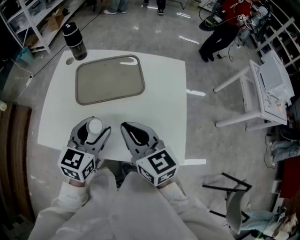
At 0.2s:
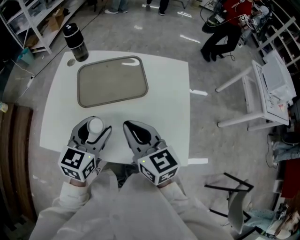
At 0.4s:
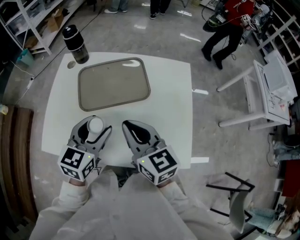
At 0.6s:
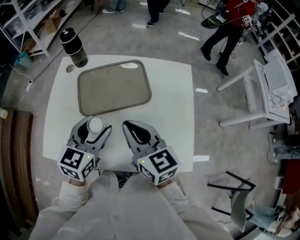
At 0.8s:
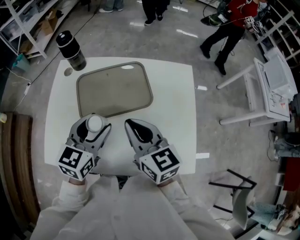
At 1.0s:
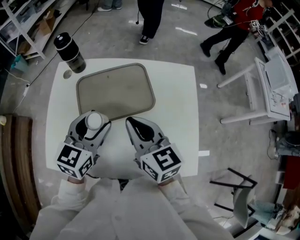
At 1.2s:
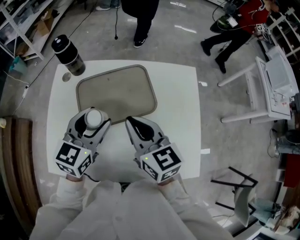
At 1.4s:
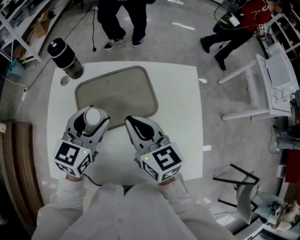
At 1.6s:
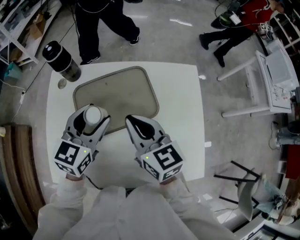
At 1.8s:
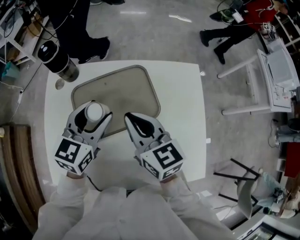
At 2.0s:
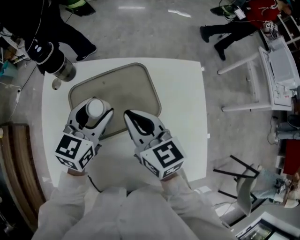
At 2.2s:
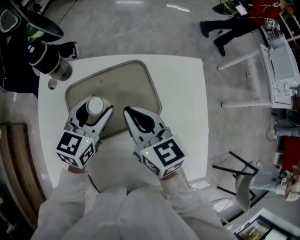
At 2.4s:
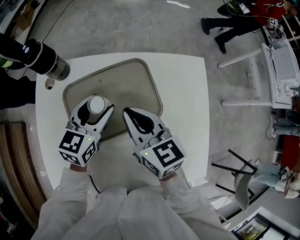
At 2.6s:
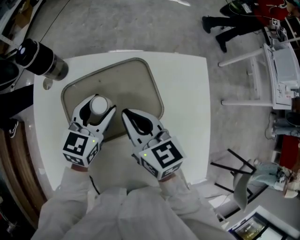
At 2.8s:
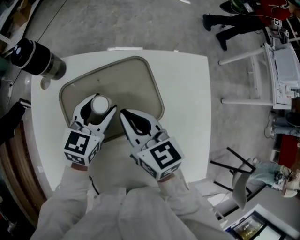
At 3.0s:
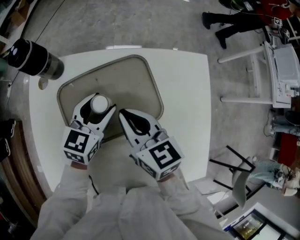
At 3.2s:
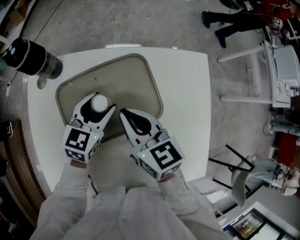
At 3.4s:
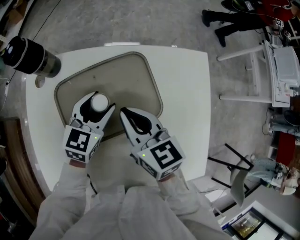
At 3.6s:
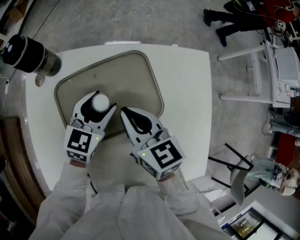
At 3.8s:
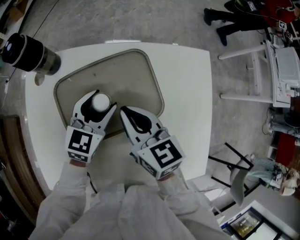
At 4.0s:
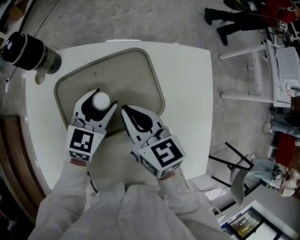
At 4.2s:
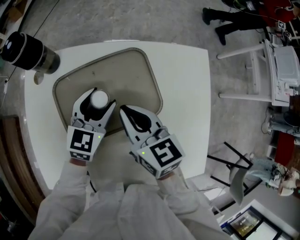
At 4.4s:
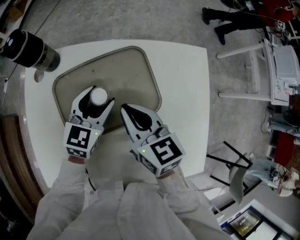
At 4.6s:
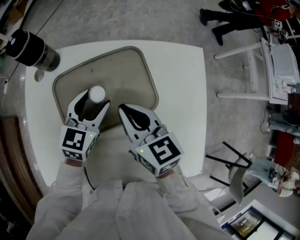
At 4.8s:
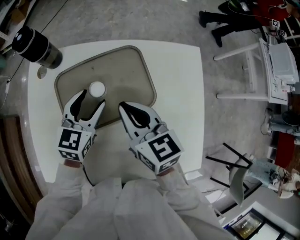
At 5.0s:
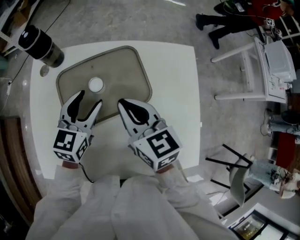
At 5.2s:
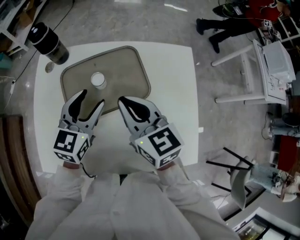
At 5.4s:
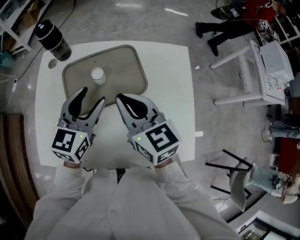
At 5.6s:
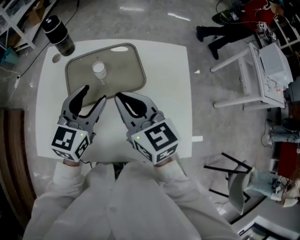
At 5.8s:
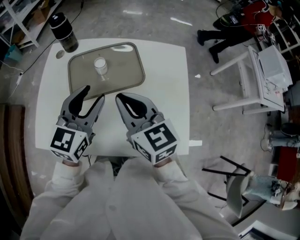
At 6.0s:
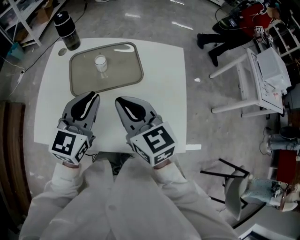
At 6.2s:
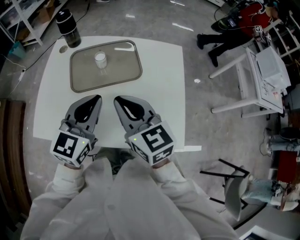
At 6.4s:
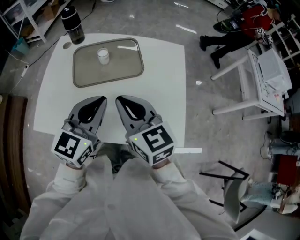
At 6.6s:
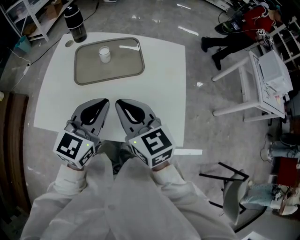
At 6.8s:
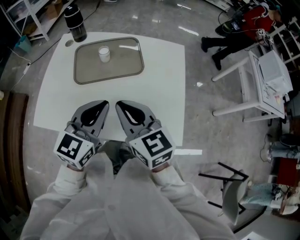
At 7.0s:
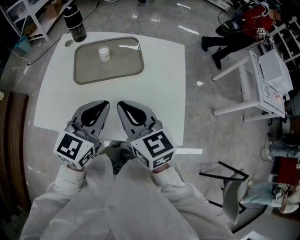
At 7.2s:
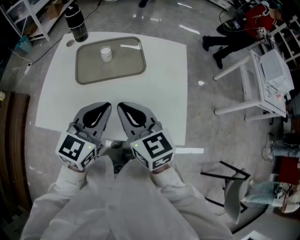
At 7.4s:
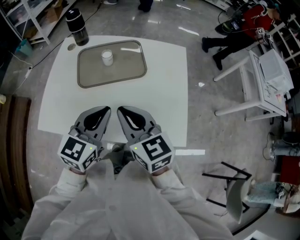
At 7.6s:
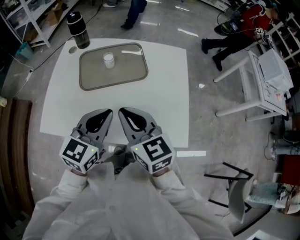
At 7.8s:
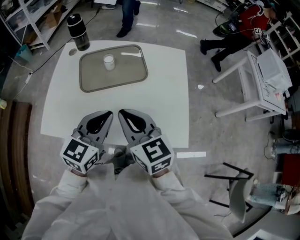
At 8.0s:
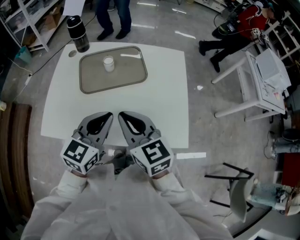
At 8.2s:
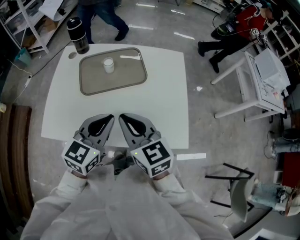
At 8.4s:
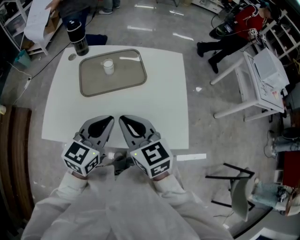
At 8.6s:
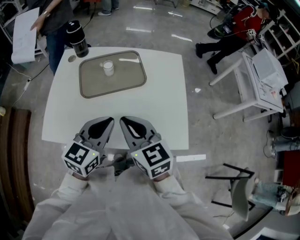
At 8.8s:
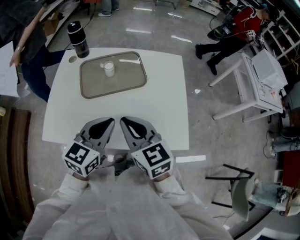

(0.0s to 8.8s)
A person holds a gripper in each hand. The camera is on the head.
0.0s - 1.4s: Both grippers move forward, approximately 20 cm.
1.4s - 3.0s: The right gripper shifts roughly 15 cm forward and downward. Meanwhile the left gripper shifts some 20 cm downward and forward.
3.0s - 4.4s: The grippers move only a little.
4.4s - 5.8s: Both grippers move backward and upward, about 25 cm.
5.8s - 7.4s: The grippers both shift backward by some 15 cm. The left gripper closes up.
7.4s - 8.8s: The grippers stay close to where they were, moving slightly.

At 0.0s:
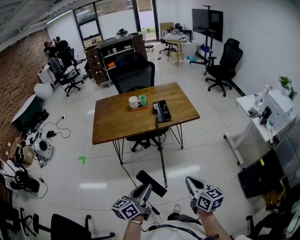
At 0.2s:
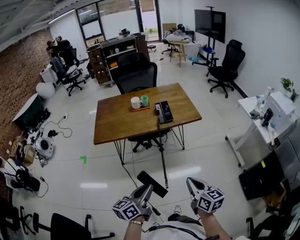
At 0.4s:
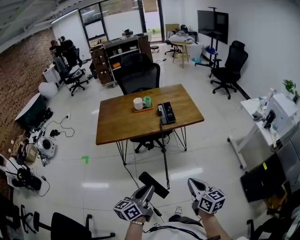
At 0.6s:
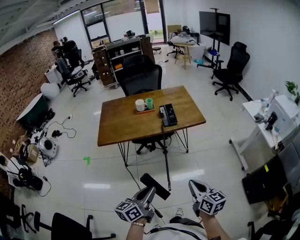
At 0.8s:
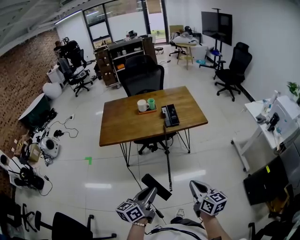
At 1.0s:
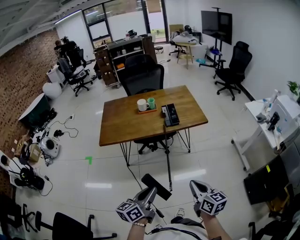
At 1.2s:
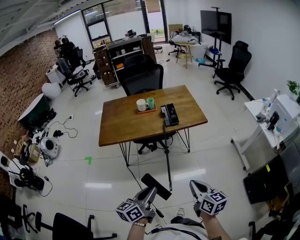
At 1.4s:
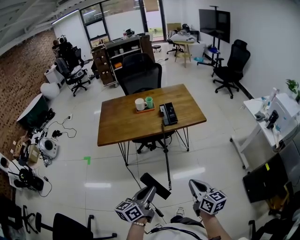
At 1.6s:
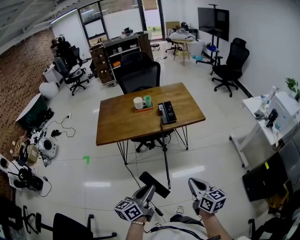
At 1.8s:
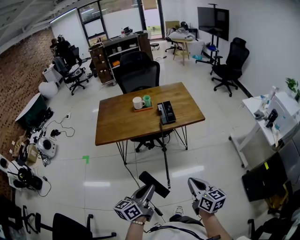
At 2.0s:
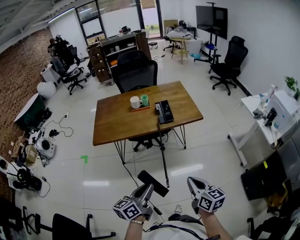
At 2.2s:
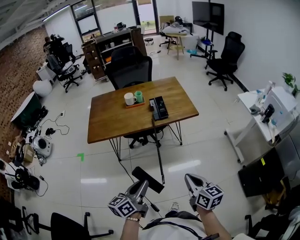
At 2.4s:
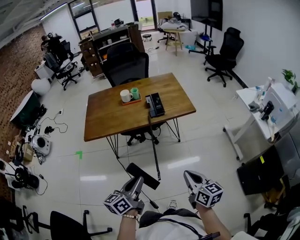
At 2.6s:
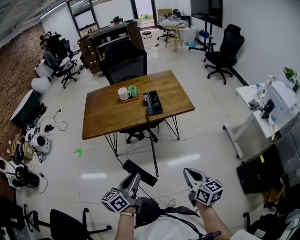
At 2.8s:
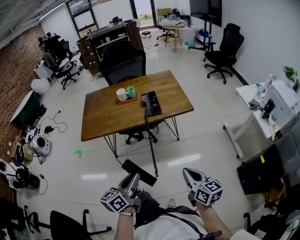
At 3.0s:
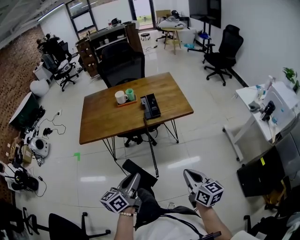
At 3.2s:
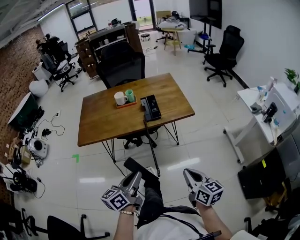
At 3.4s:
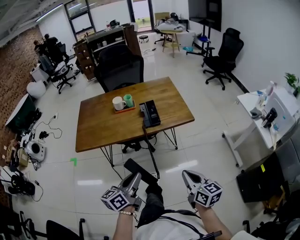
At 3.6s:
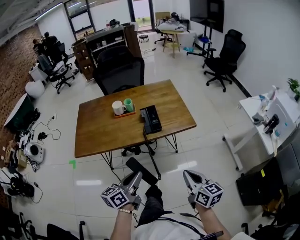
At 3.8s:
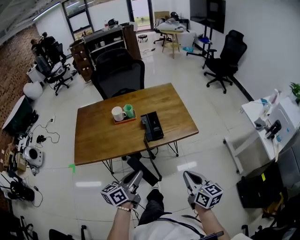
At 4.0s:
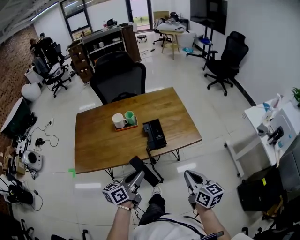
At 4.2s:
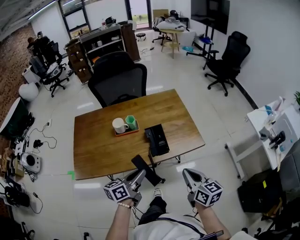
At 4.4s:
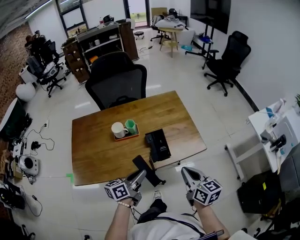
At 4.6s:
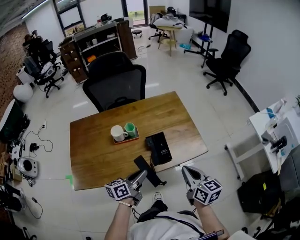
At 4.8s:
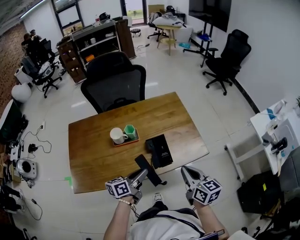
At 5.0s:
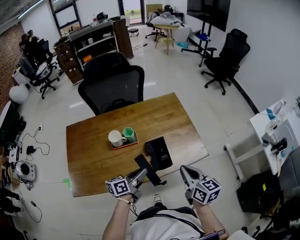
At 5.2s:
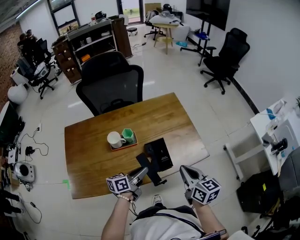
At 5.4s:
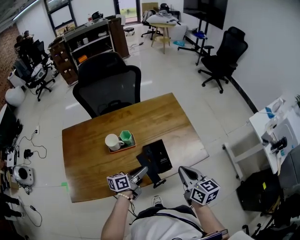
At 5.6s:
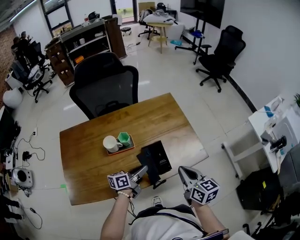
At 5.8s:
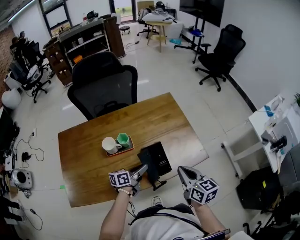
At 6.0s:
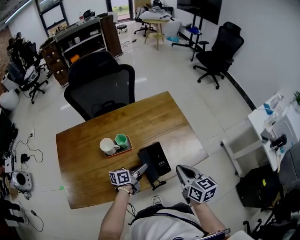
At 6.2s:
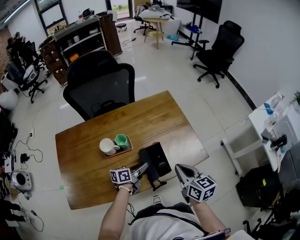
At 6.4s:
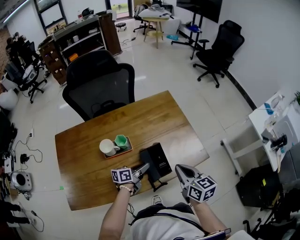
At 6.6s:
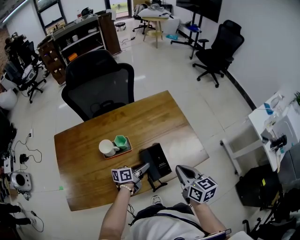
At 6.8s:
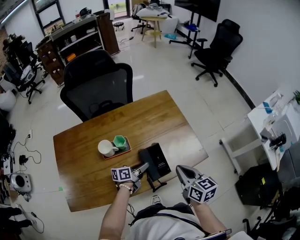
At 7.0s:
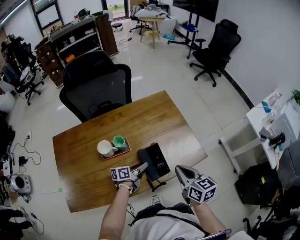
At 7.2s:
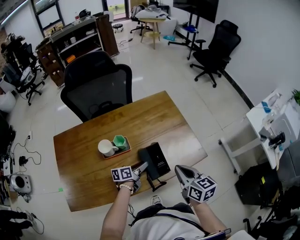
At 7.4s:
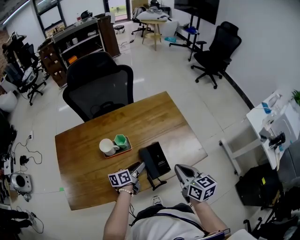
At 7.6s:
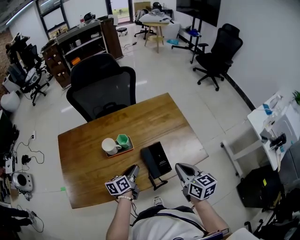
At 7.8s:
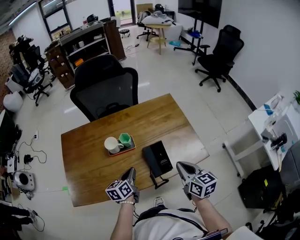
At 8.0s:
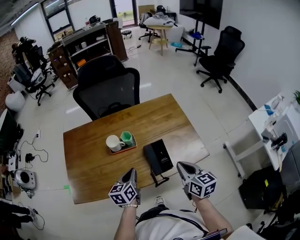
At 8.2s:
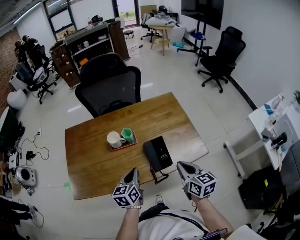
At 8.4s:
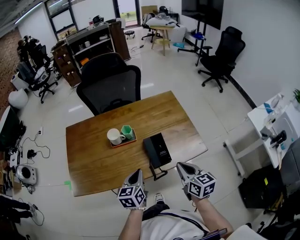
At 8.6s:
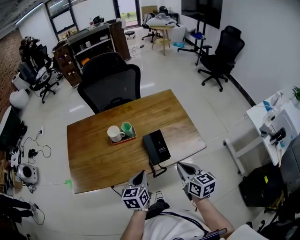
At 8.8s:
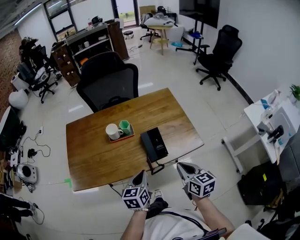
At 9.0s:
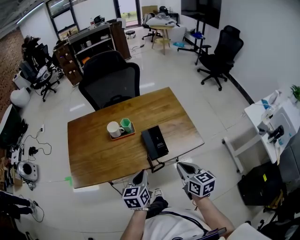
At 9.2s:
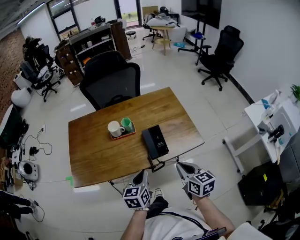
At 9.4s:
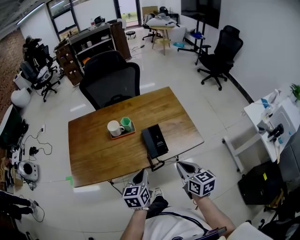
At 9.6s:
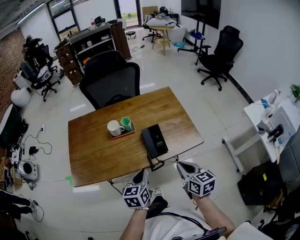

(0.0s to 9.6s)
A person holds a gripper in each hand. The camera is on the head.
0.0s - 1.6s: The grippers stay close to where they were, moving slightly.
1.6s - 3.2s: The right gripper moves forward and to the right, approximately 10 cm, while the left gripper goes some 10 cm forward.
3.2s - 4.8s: Both grippers travel together forward, about 35 cm. The left gripper turns by some 20 degrees.
4.8s - 6.4s: The left gripper goes about 15 cm forward and downward. The right gripper heads forward, covering some 10 cm.
6.4s - 8.0s: The left gripper shifts some 15 cm upward, to the left and backward, changes its angle by about 40 degrees, and opens and closes again.
8.0s - 9.6s: The left gripper travels backward and to the right by approximately 15 cm. Meanwhile the right gripper moves backward, some 10 cm.

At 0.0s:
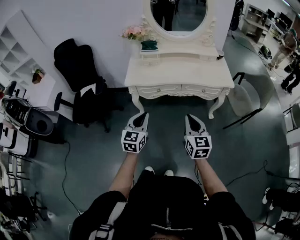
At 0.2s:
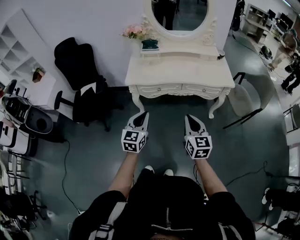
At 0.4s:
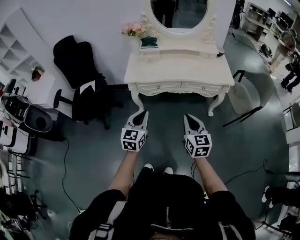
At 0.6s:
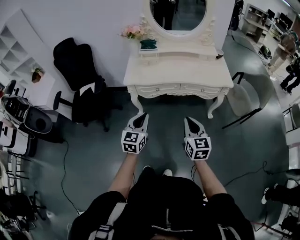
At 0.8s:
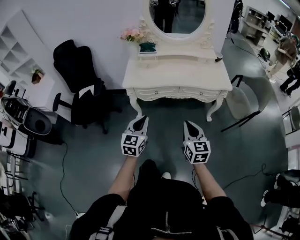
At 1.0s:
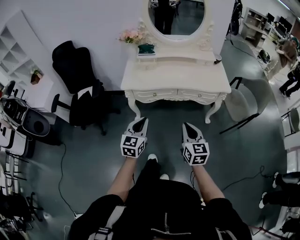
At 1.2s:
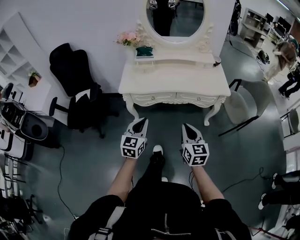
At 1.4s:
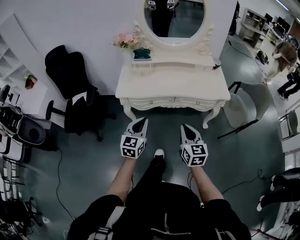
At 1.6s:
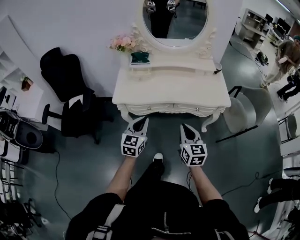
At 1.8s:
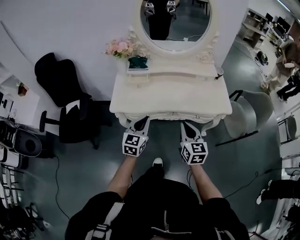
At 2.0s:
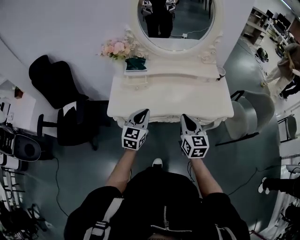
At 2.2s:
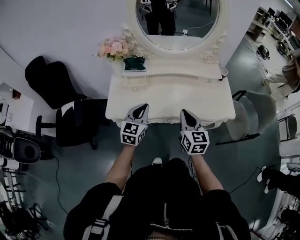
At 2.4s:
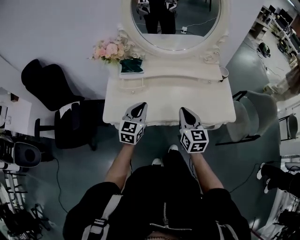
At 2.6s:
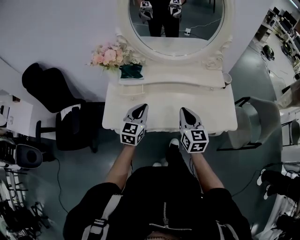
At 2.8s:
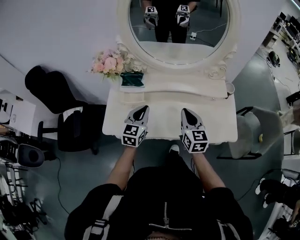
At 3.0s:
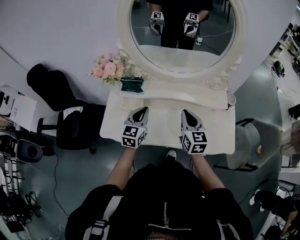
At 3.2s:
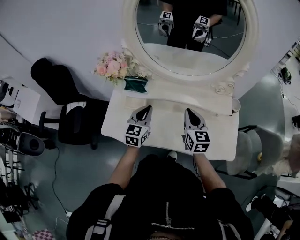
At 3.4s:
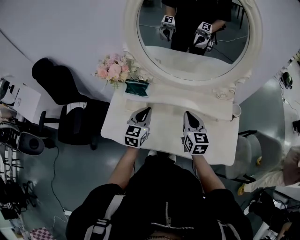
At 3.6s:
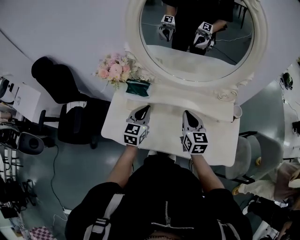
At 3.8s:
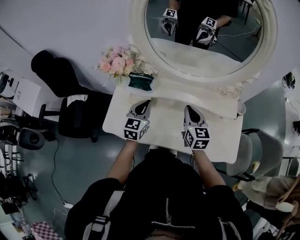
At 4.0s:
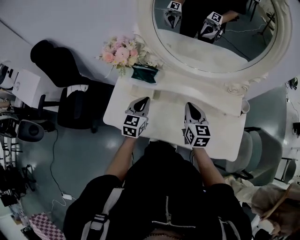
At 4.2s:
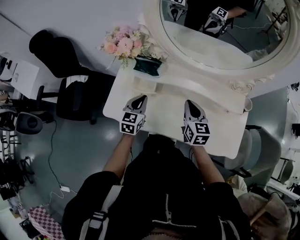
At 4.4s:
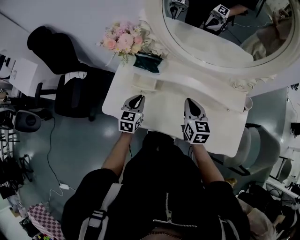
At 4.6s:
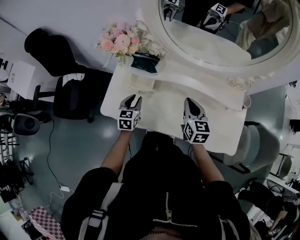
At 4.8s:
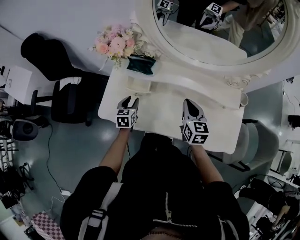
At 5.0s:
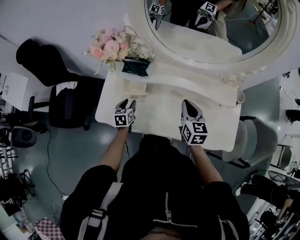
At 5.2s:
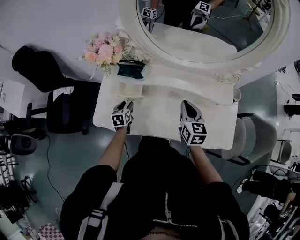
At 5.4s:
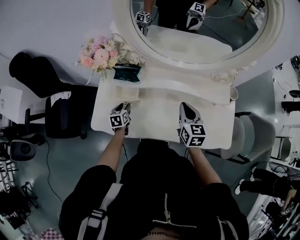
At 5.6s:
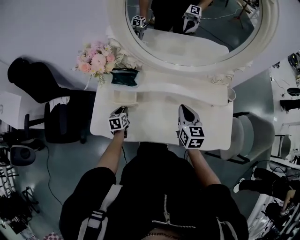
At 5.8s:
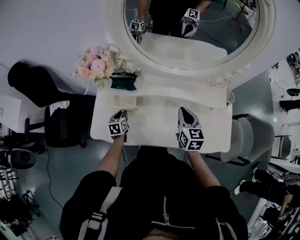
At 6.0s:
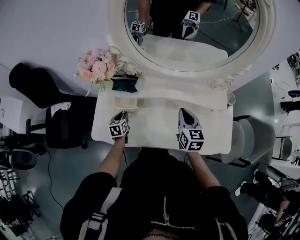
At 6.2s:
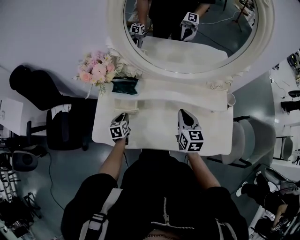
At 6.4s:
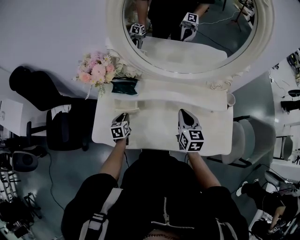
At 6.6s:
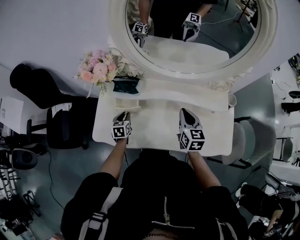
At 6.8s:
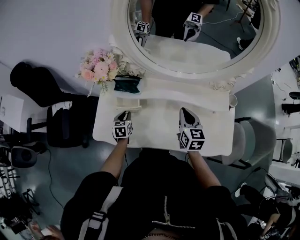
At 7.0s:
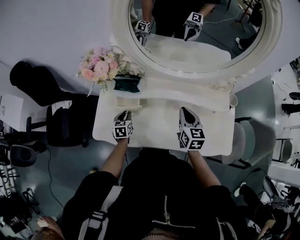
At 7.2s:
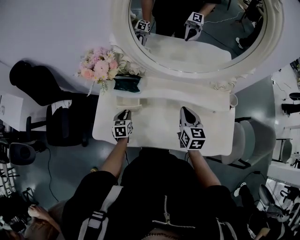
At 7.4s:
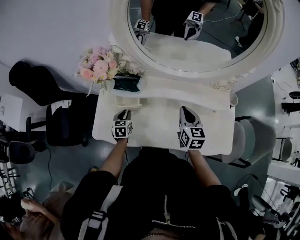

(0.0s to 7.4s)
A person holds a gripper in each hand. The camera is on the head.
0.0s - 1.4s: Both grippers move forward, about 10 cm.
1.4s - 3.0s: The pair of grippers is taken forward, some 50 cm.
3.0s - 4.4s: The right gripper travels downward, to the left and forward by about 10 cm. The left gripper travels downward and to the left by about 15 cm.
4.4s - 6.0s: The right gripper is displaced to the right by some 5 cm. The left gripper travels downward by about 10 cm, and turns by roughly 20 degrees.
6.0s - 7.4s: There are only small adjustments of the grippers.
